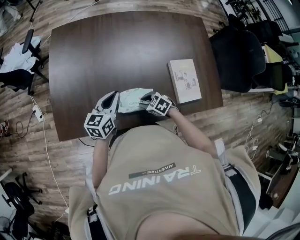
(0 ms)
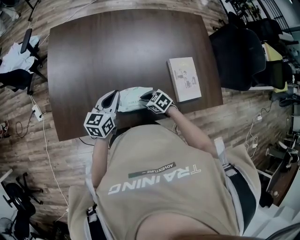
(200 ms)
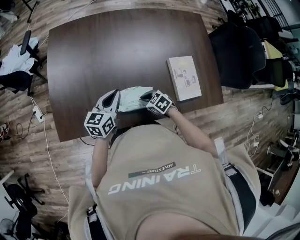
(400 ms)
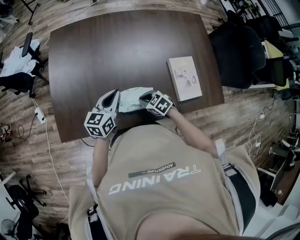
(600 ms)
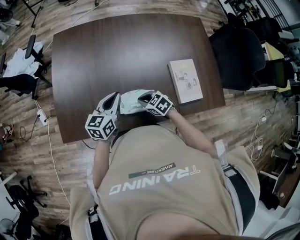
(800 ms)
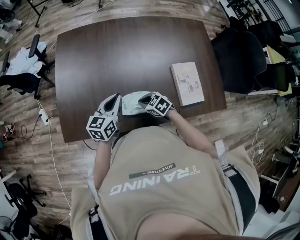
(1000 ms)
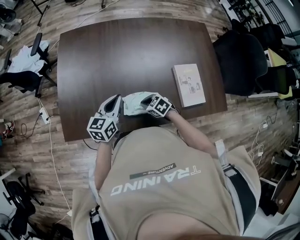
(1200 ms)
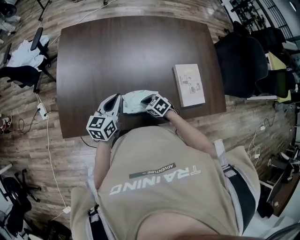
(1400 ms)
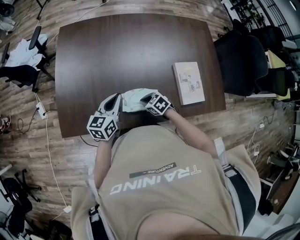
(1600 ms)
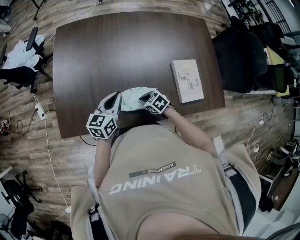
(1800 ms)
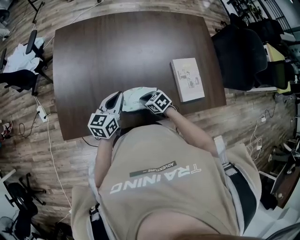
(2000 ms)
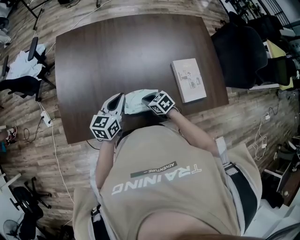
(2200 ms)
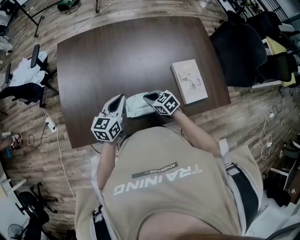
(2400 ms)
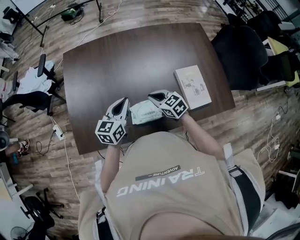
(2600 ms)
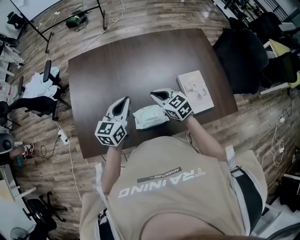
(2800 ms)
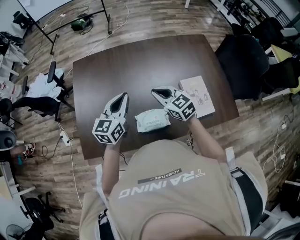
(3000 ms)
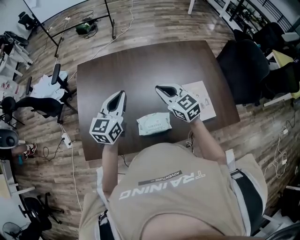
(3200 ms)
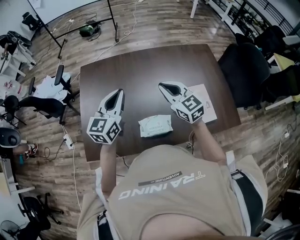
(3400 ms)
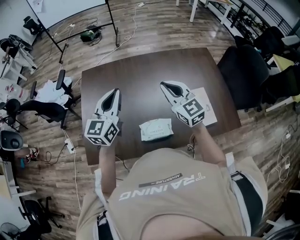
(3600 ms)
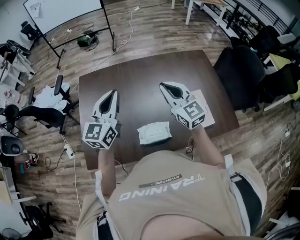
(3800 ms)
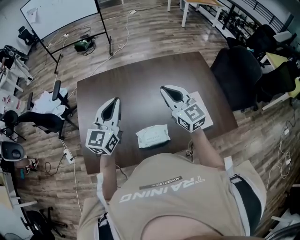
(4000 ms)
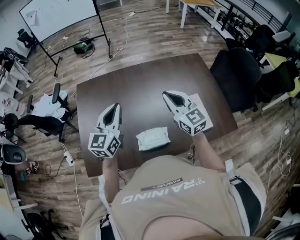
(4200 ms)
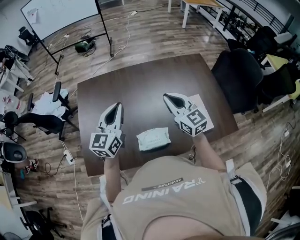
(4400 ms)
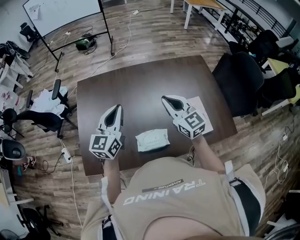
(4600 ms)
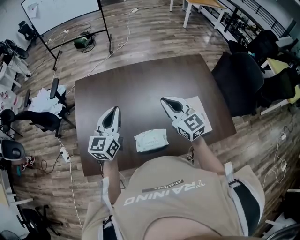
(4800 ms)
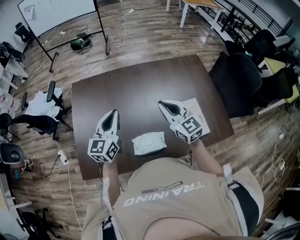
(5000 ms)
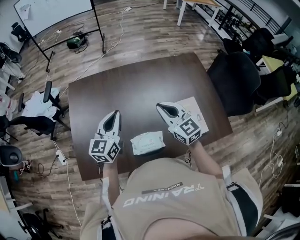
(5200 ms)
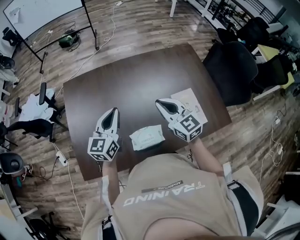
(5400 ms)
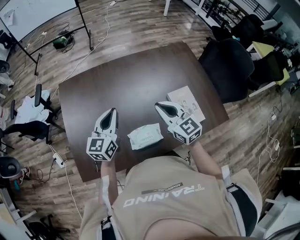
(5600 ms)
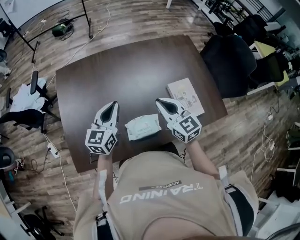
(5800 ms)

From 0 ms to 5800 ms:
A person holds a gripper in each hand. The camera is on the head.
From 0 ms to 1400 ms: The right gripper closes up.
From 1400 ms to 2800 ms: The right gripper shifts some 20 cm upward and forward, and changes its angle by about 30 degrees; the left gripper heads upward, covering roughly 10 cm.
From 2800 ms to 4400 ms: The two grippers go approximately 15 cm upward. The right gripper changes its angle by roughly 30 degrees.
From 4400 ms to 5800 ms: The two grippers go about 10 cm downward.

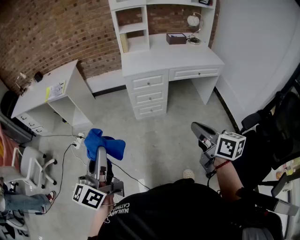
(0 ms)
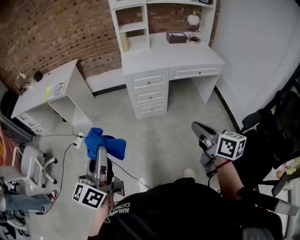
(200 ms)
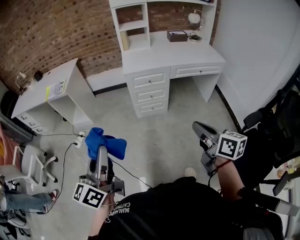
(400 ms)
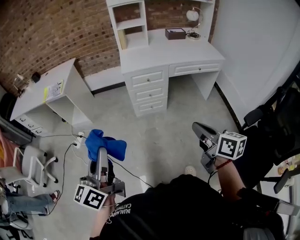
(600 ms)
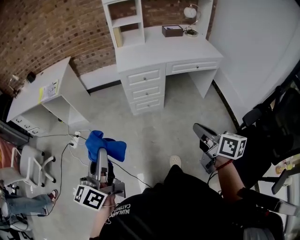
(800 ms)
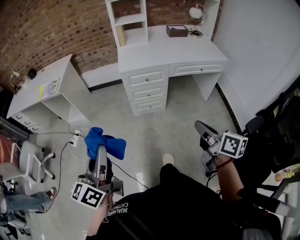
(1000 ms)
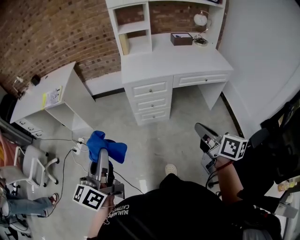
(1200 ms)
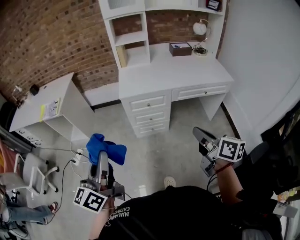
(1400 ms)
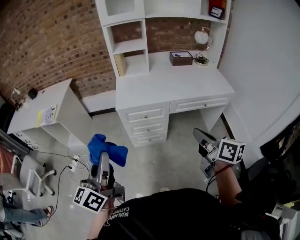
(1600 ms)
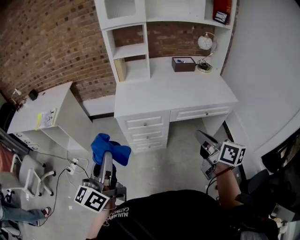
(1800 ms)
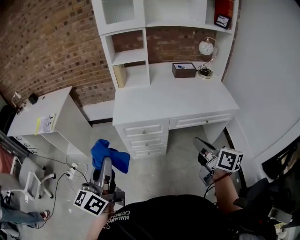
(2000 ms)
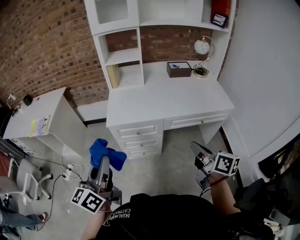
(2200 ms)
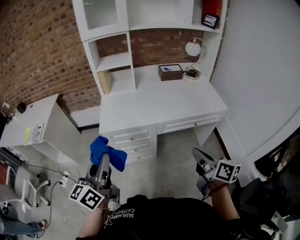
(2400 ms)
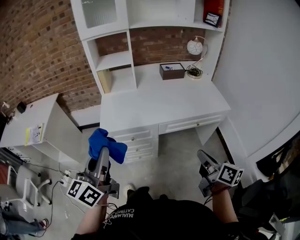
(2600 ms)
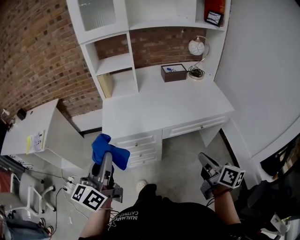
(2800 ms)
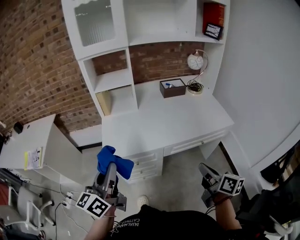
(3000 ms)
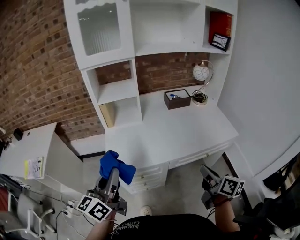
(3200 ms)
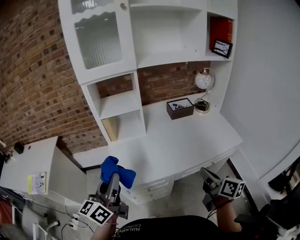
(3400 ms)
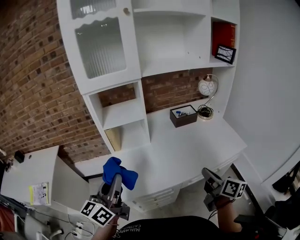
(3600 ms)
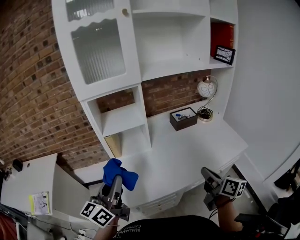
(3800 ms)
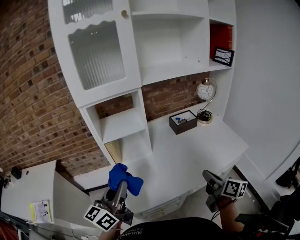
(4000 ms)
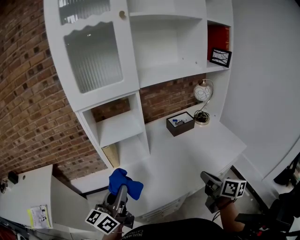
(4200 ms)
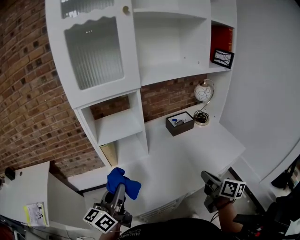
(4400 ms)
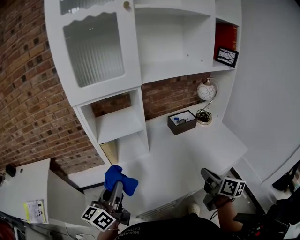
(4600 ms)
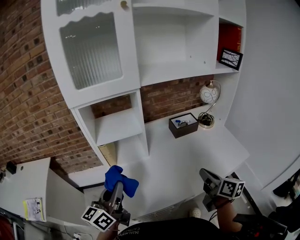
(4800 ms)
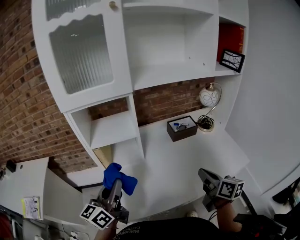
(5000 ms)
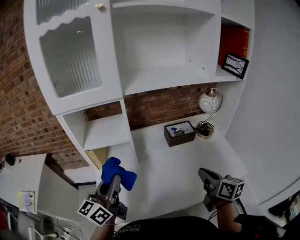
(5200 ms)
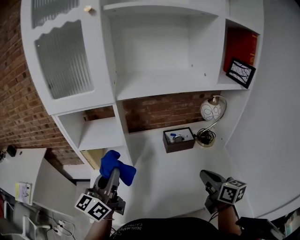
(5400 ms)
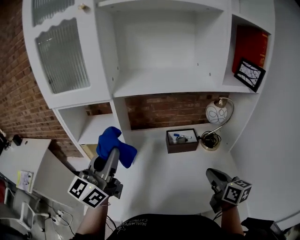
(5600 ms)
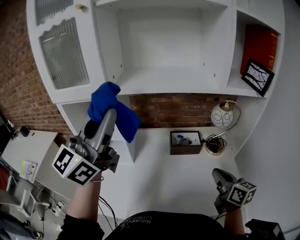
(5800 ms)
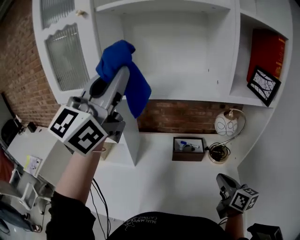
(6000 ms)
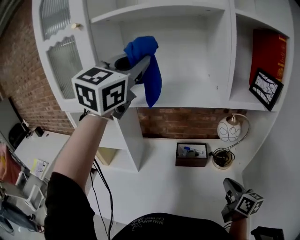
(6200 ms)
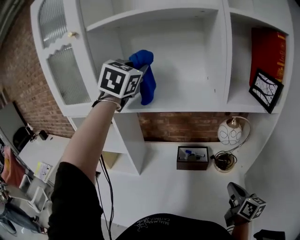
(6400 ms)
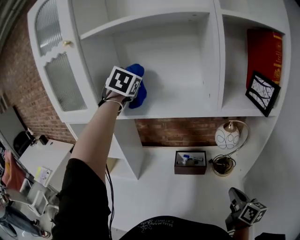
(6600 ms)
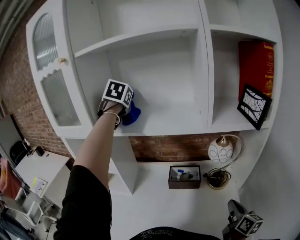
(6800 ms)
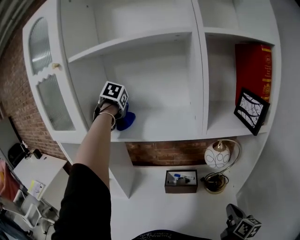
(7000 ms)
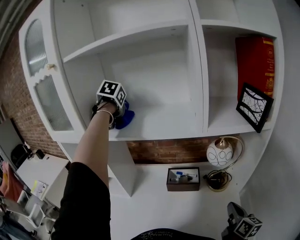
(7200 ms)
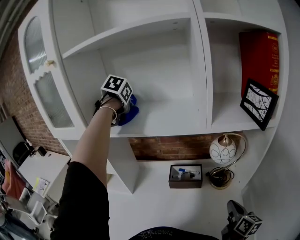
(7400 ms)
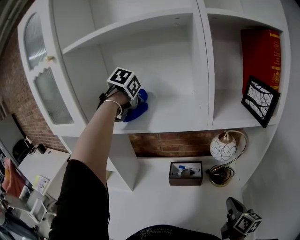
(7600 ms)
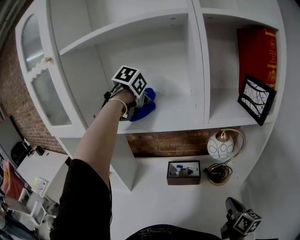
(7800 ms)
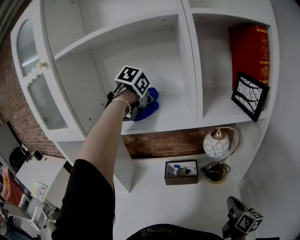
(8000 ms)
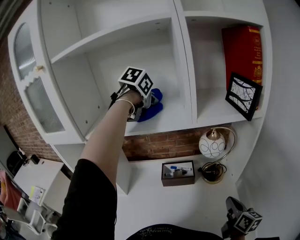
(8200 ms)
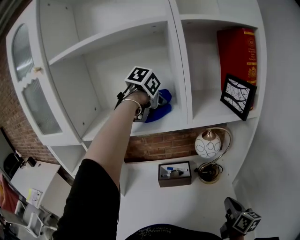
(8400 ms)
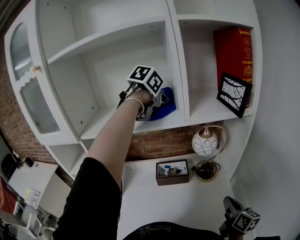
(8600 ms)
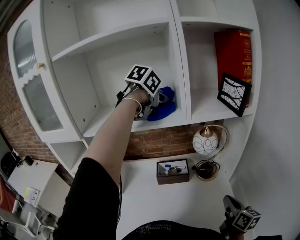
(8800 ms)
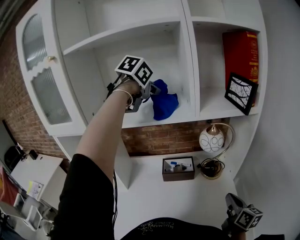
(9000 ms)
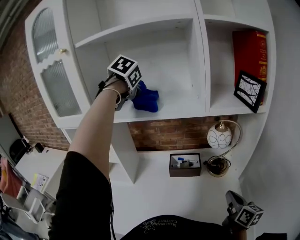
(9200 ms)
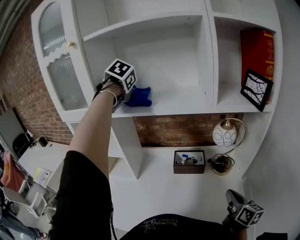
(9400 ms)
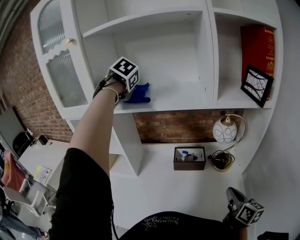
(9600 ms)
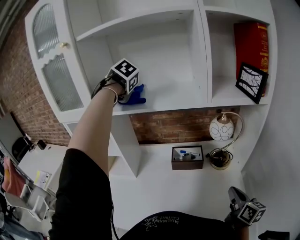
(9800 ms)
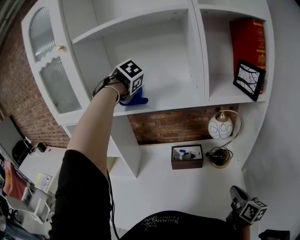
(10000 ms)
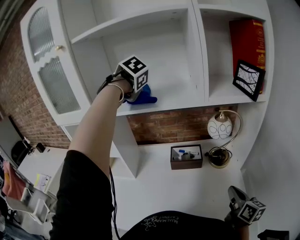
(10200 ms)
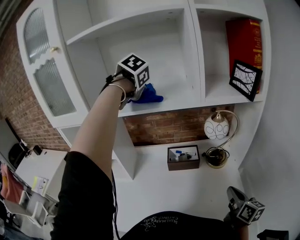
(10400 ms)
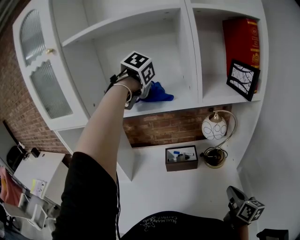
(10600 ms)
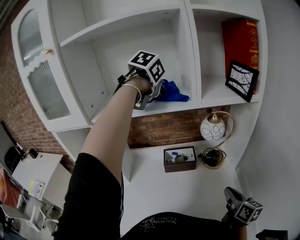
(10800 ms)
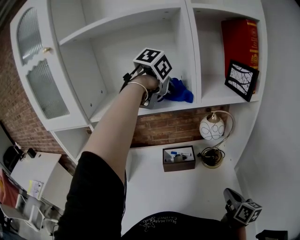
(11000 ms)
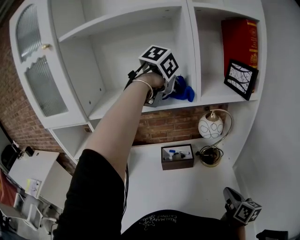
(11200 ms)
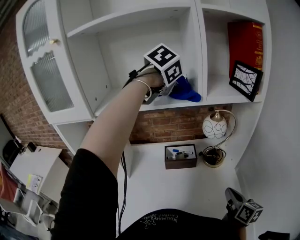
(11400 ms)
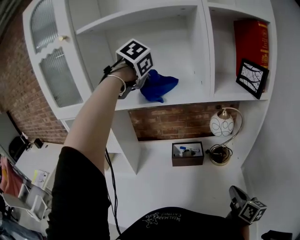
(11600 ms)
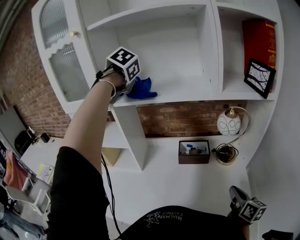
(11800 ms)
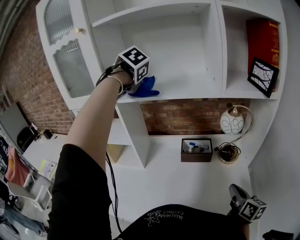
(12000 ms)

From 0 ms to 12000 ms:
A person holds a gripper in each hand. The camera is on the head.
From 0 ms to 1600 ms: Both grippers travel together forward and to the right, roughly 30 cm.
From 1600 ms to 3000 ms: The right gripper shifts some 20 cm forward and to the right. The left gripper is displaced forward by roughly 25 cm.
From 3000 ms to 4400 ms: Both grippers travel together forward and to the left, about 25 cm.
From 4400 ms to 6000 ms: The right gripper moves to the right and forward, approximately 35 cm, and turns by approximately 30 degrees, while the left gripper goes about 50 cm upward, to the right and forward, and twists roughly 50 degrees clockwise, seen from behind.
From 6000 ms to 7600 ms: The right gripper goes about 10 cm to the right; the left gripper moves forward and downward, approximately 30 cm, and angles its fingers downward, by some 70 degrees.
From 7600 ms to 9000 ms: The right gripper moves backward, about 5 cm; the left gripper travels to the right by approximately 15 cm, and changes its angle by approximately 20 degrees.
From 9000 ms to 10400 ms: The left gripper swivels roughly 30 degrees.

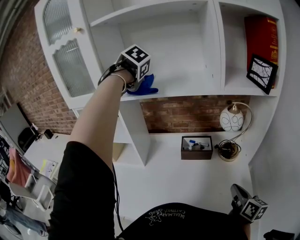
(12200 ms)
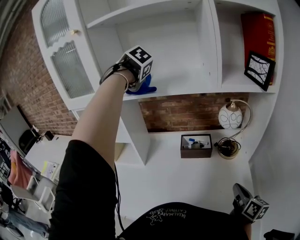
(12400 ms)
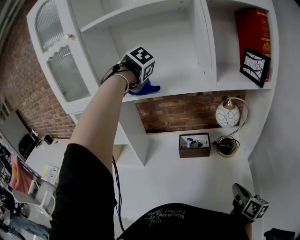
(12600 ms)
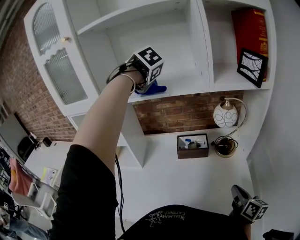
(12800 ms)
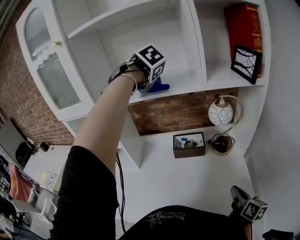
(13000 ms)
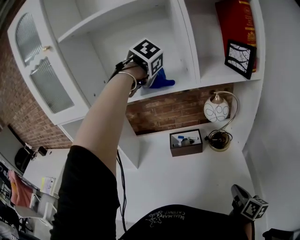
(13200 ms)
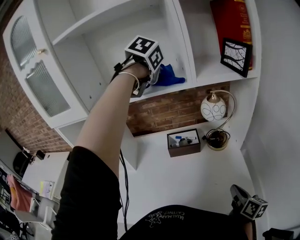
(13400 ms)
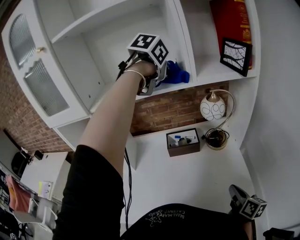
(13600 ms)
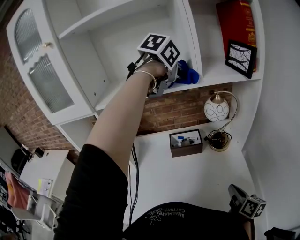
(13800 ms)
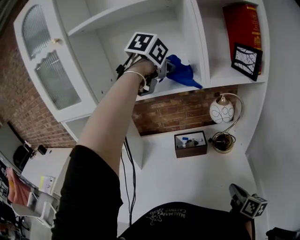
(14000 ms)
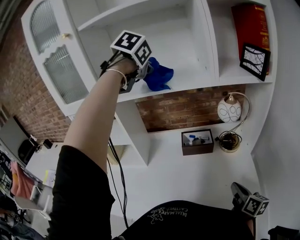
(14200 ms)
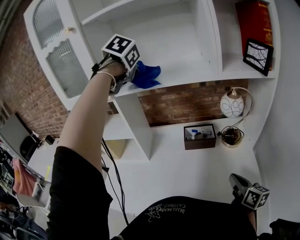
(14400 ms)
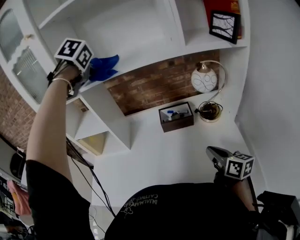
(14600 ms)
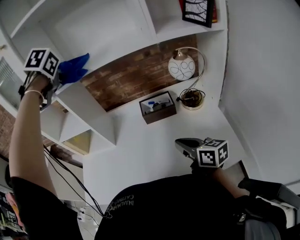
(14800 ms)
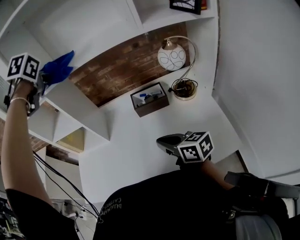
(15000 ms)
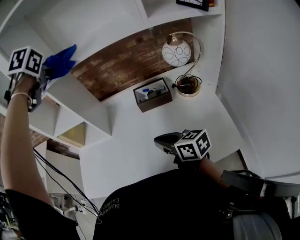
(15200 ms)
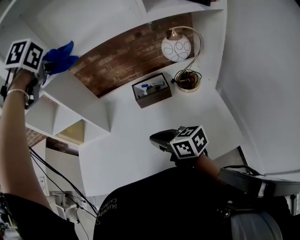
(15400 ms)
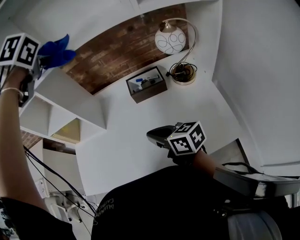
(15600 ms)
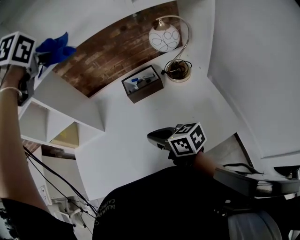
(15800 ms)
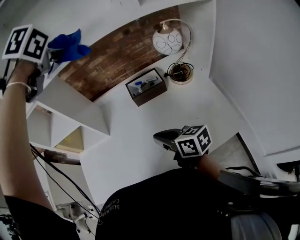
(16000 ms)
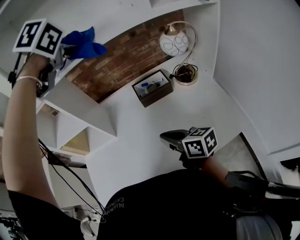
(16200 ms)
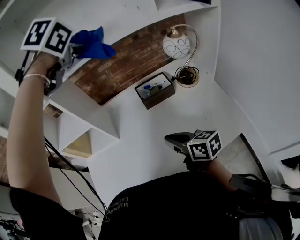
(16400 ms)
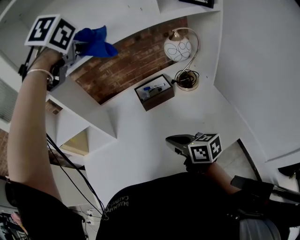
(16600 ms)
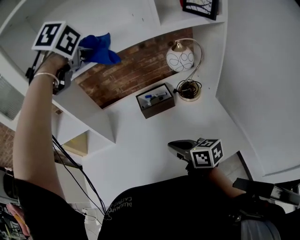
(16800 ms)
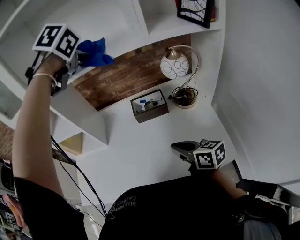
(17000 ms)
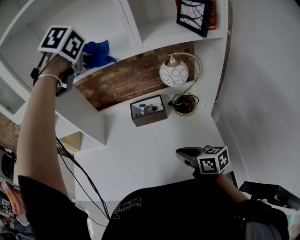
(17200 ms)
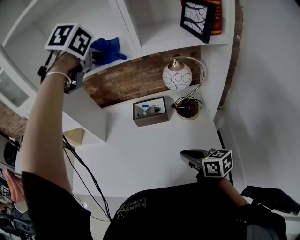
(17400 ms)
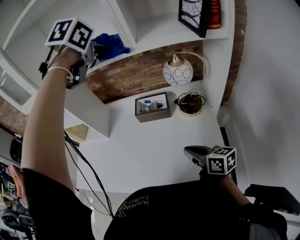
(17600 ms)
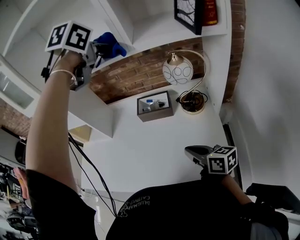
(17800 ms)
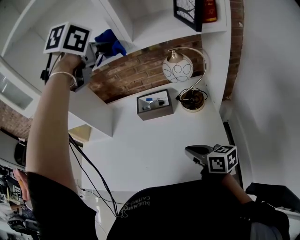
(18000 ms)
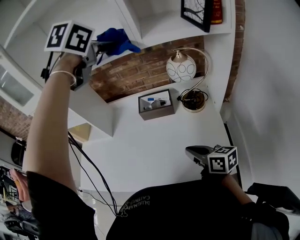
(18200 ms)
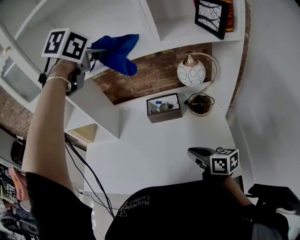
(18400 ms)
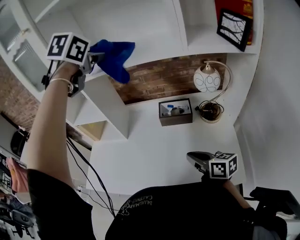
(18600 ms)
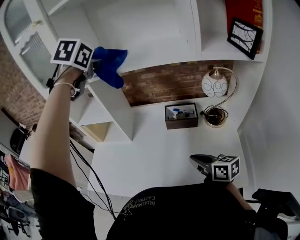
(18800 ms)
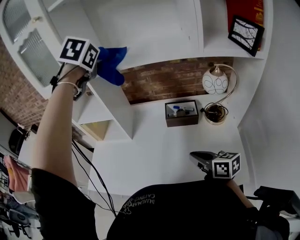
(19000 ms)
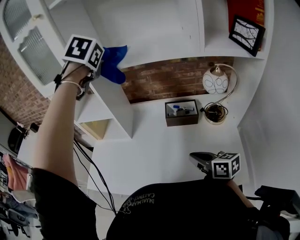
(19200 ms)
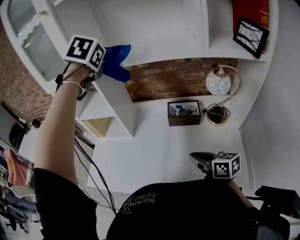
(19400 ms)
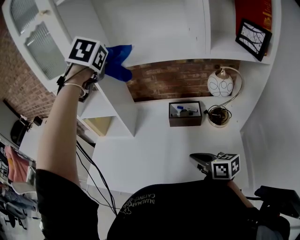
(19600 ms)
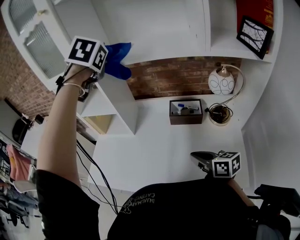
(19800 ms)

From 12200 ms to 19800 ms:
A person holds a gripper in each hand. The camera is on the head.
From 12200 ms to 13800 ms: The left gripper changes place by approximately 30 cm, and changes its angle by some 50 degrees, while the right gripper ends up about 5 cm from where it was.
From 13800 ms to 15200 ms: The right gripper shifts by roughly 25 cm, and swivels some 40 degrees. Meanwhile the left gripper shifts by approximately 30 cm, and swivels about 40 degrees.
From 15200 ms to 16800 ms: The left gripper goes roughly 15 cm to the right, and rotates approximately 30 degrees.
From 16800 ms to 18200 ms: The grippers both shift to the right by about 15 cm.
From 18200 ms to 19800 ms: The right gripper shifts approximately 10 cm to the left and forward. The left gripper goes about 25 cm to the left, and changes its angle by approximately 30 degrees.
